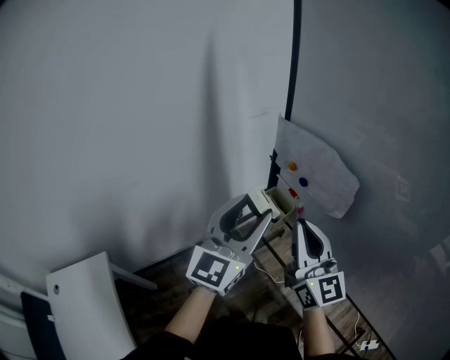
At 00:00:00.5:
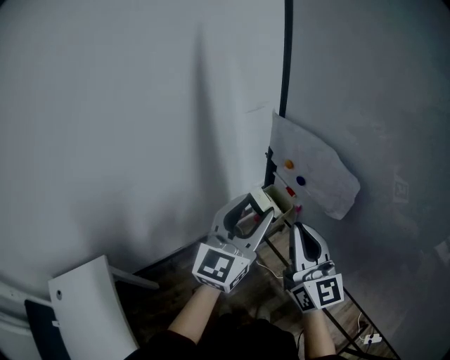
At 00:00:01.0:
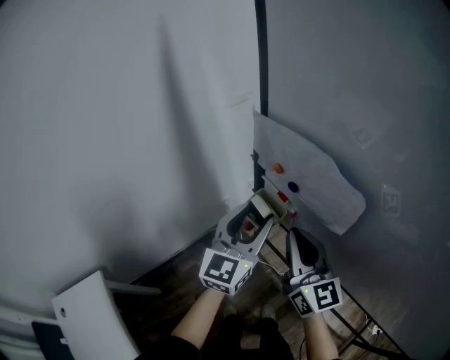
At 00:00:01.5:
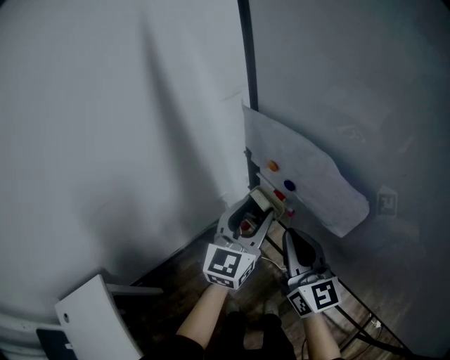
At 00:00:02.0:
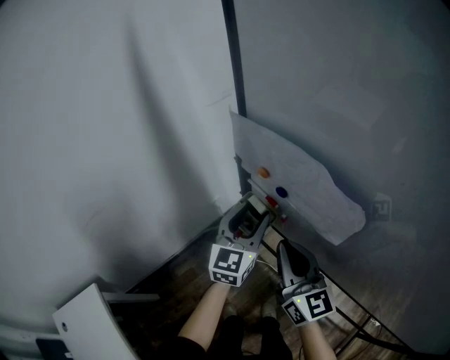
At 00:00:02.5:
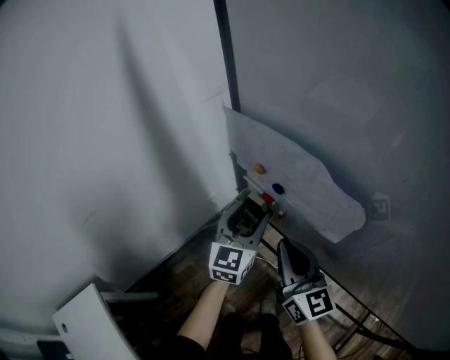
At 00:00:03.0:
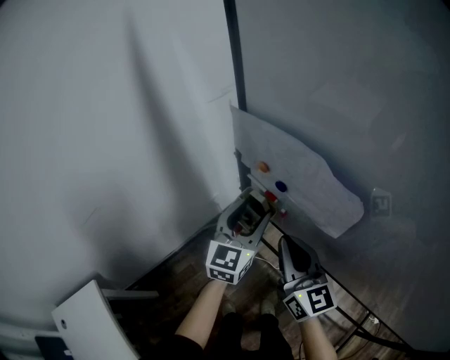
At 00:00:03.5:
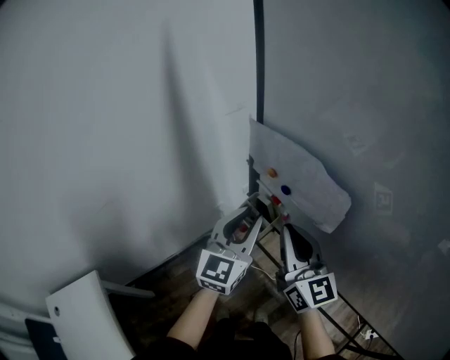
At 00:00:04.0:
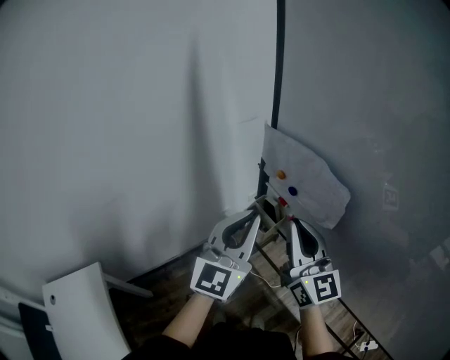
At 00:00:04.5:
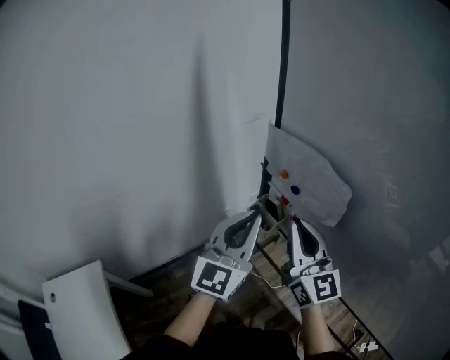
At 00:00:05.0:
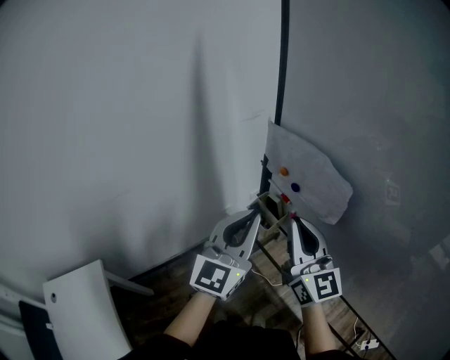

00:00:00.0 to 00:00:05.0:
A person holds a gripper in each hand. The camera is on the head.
00:00:00.0 to 00:00:02.5: The right gripper is displaced downward and forward by about 15 cm. Meanwhile the left gripper heads downward and forward, covering about 25 cm, and swivels approximately 20 degrees.
00:00:02.5 to 00:00:05.0: The right gripper heads upward, covering some 10 cm. Meanwhile the left gripper heads upward and backward, covering roughly 20 cm, and closes.

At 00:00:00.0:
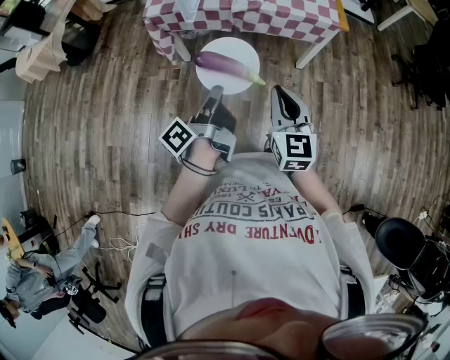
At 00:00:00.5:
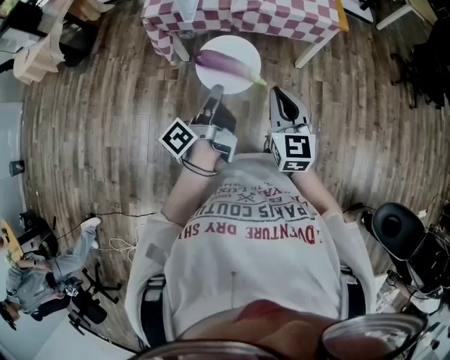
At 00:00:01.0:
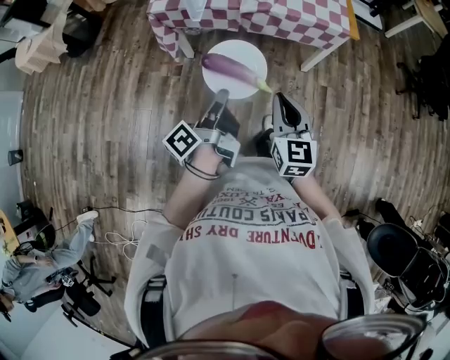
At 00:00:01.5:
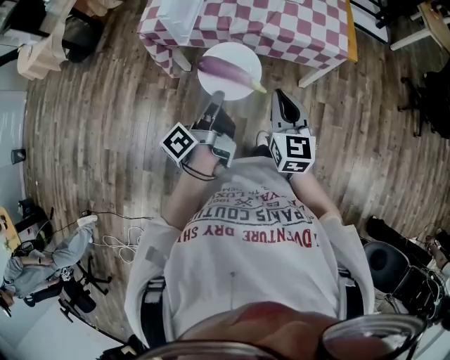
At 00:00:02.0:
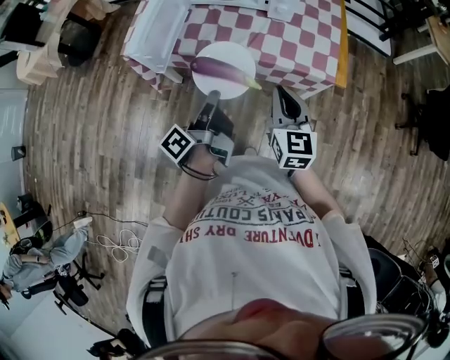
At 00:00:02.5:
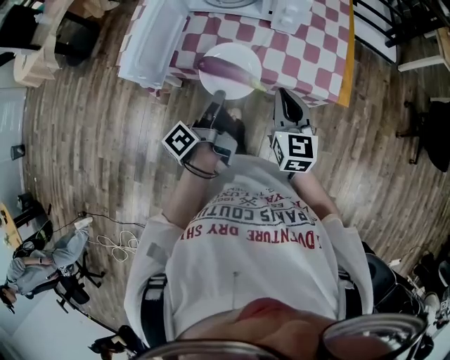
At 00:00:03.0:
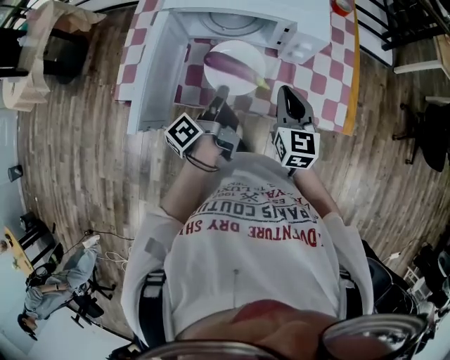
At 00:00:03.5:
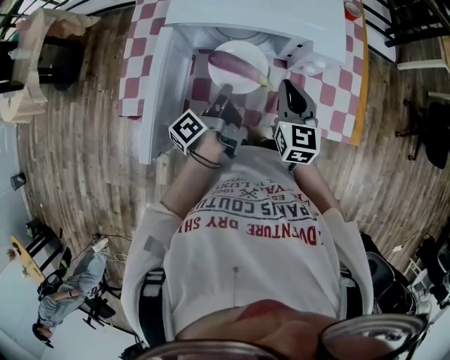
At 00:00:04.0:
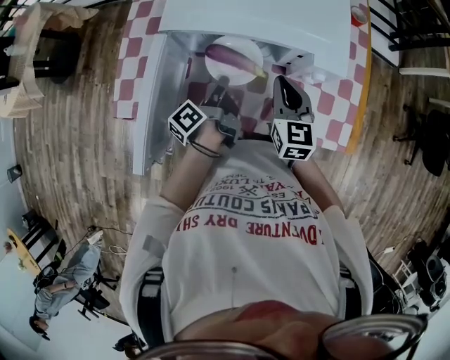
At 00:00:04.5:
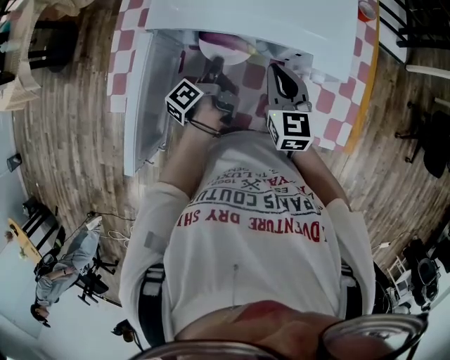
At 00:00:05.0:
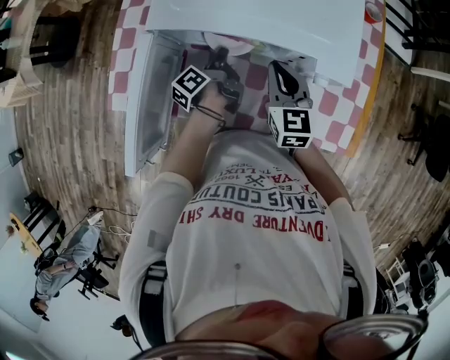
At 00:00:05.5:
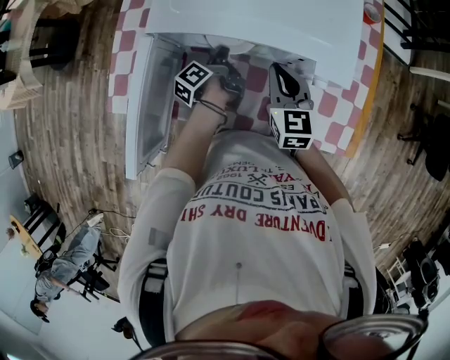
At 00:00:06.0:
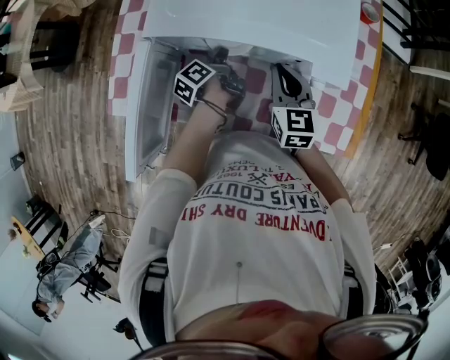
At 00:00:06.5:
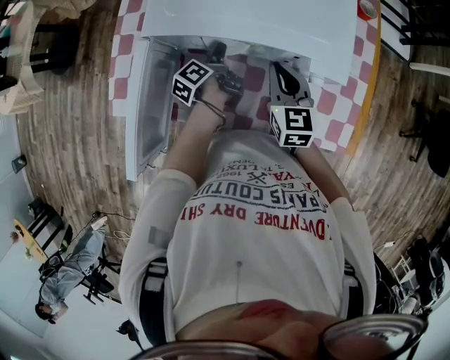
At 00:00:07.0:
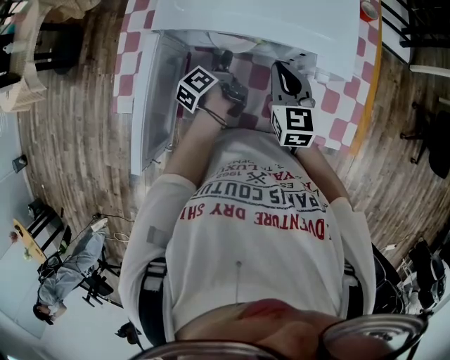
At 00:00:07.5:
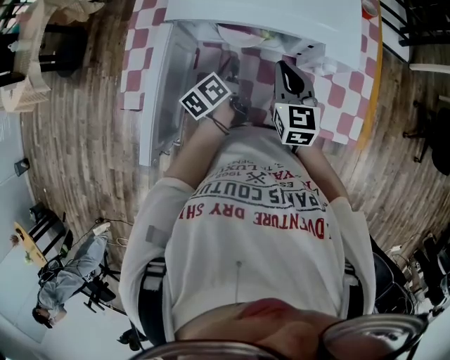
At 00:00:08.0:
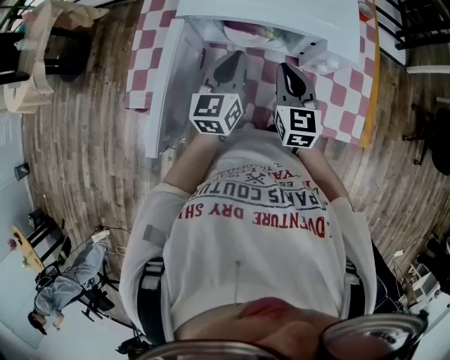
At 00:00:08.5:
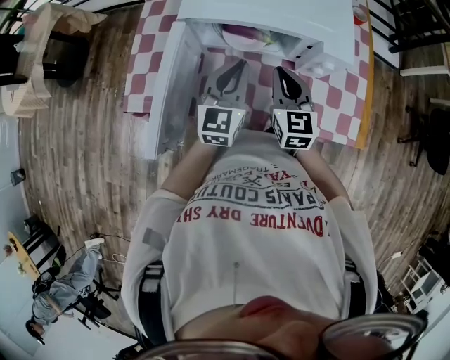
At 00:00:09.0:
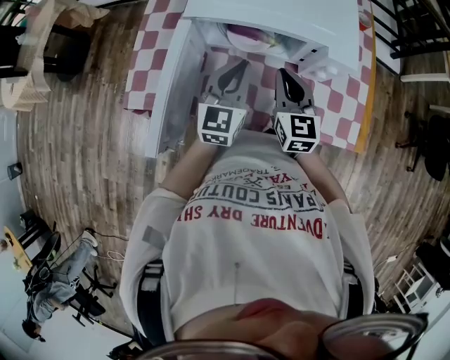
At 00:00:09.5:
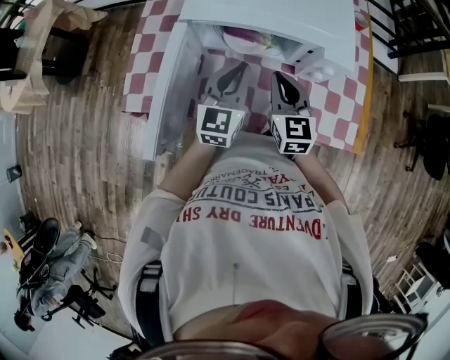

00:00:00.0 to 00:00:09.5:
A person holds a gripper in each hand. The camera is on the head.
00:00:00.0 to 00:00:02.0: The right gripper changes place by about 35 cm.
00:00:02.0 to 00:00:04.0: The right gripper moves some 35 cm.
00:00:04.0 to 00:00:05.5: The right gripper shifts by roughly 5 cm.

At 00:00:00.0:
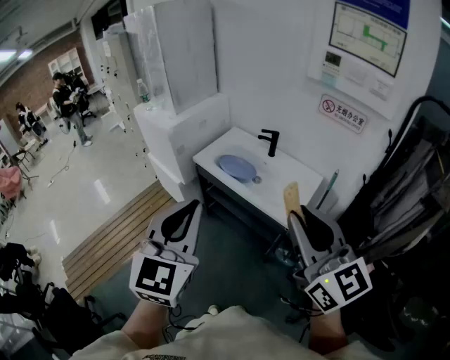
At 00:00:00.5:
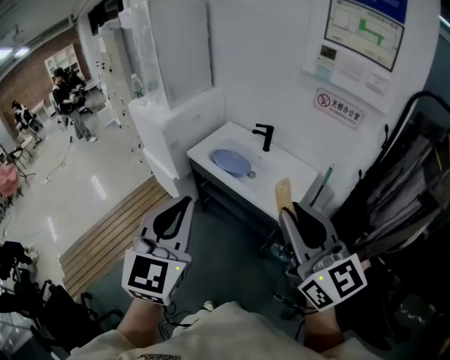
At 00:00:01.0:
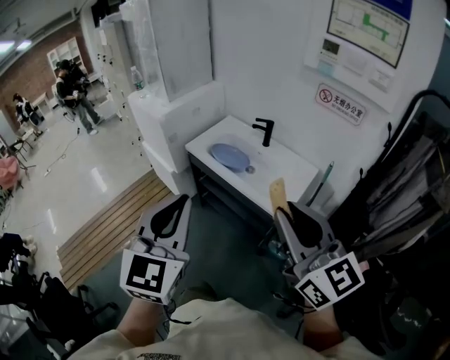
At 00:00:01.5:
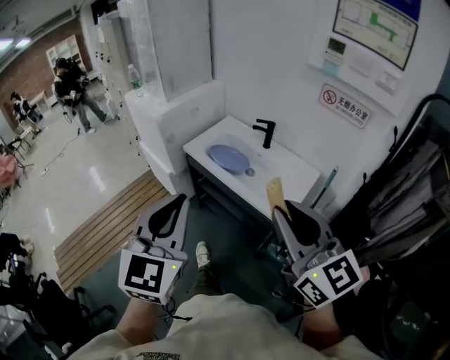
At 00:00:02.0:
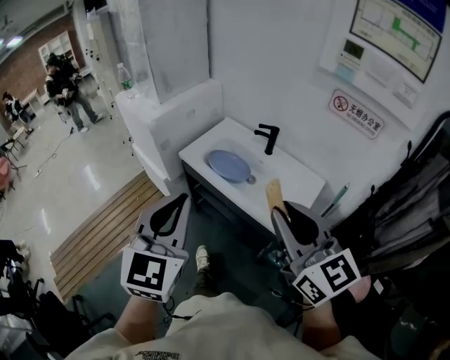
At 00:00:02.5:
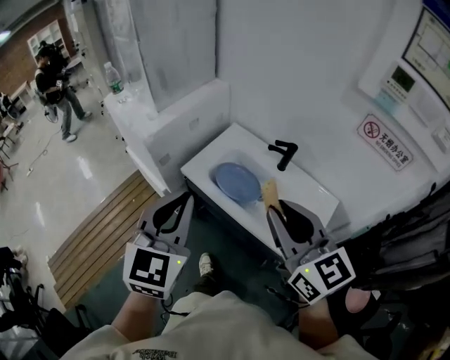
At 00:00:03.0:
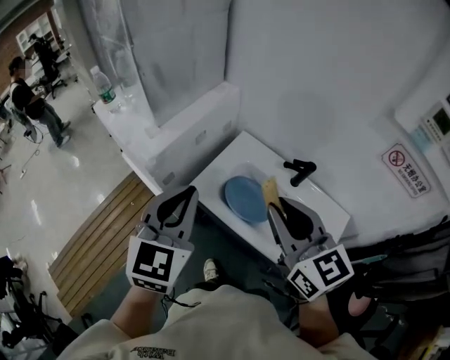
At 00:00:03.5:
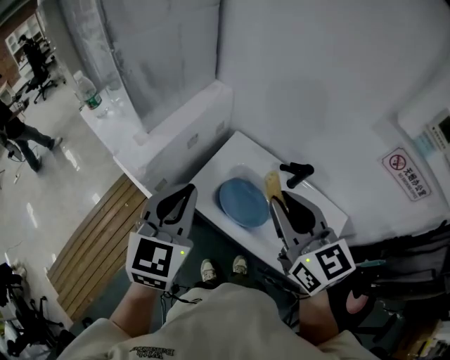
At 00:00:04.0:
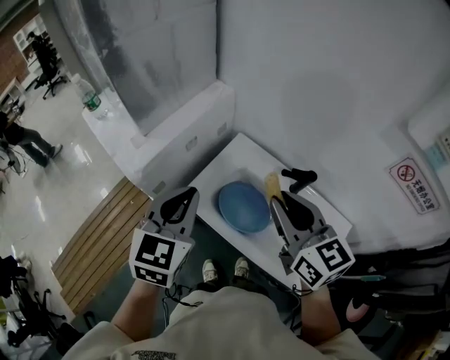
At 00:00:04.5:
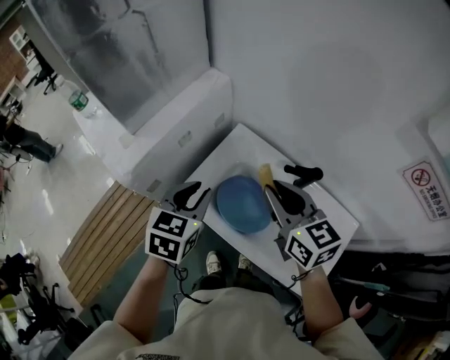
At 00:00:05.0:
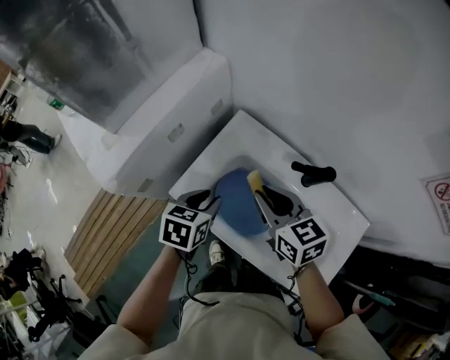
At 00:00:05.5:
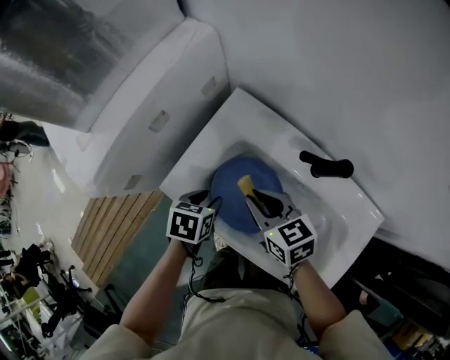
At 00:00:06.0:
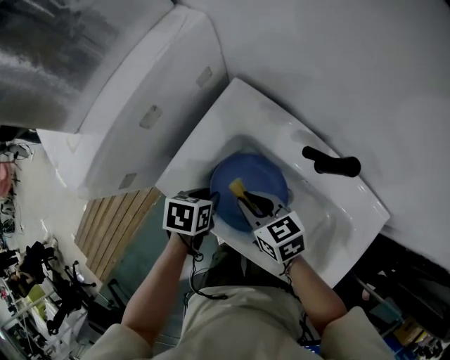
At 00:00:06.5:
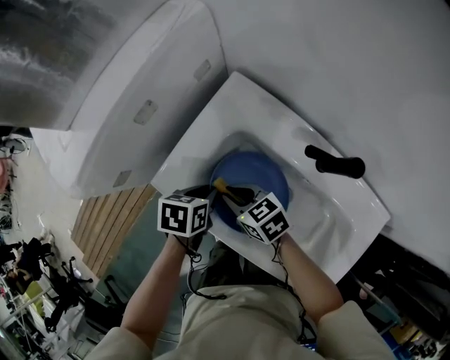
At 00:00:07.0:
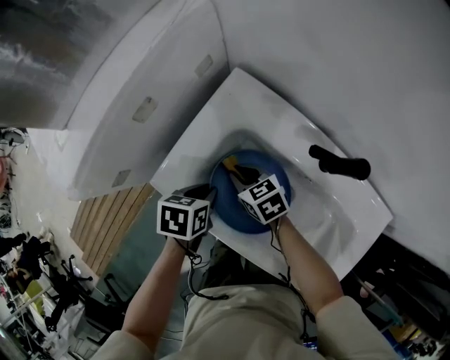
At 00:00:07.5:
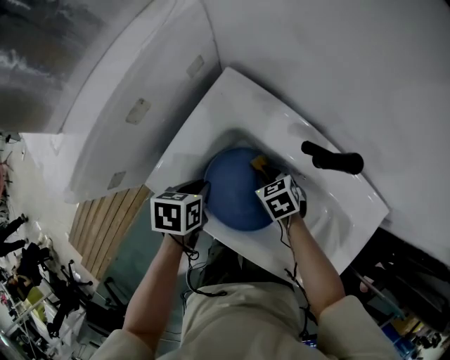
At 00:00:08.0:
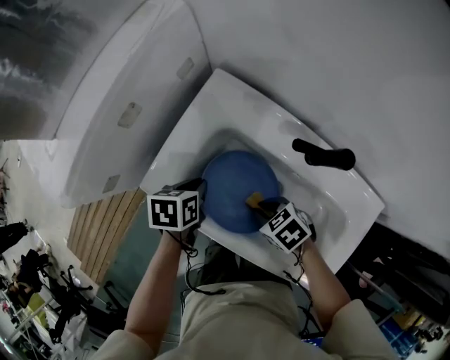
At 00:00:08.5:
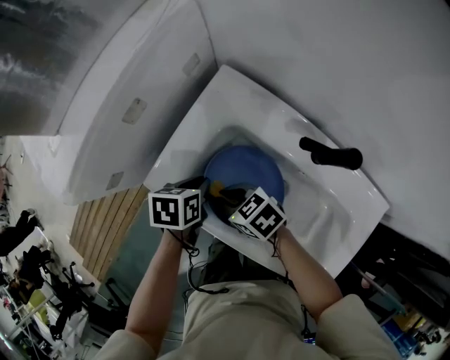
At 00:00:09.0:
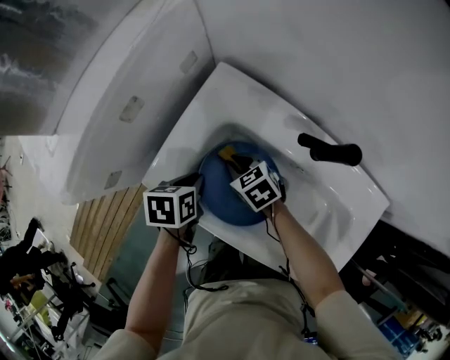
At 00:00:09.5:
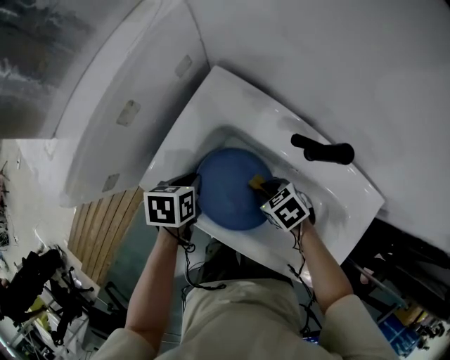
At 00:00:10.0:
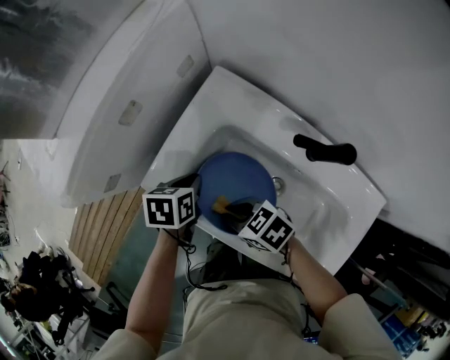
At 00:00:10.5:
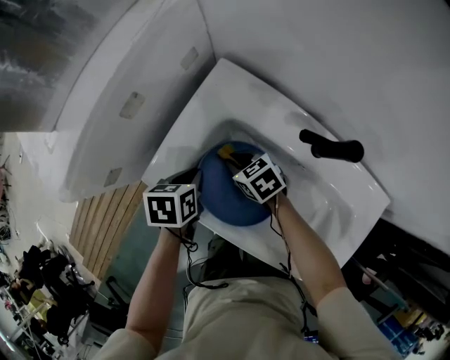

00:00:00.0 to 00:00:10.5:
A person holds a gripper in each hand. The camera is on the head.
00:00:00.0 to 00:00:02.0: The grippers both shift forward and downward by some 15 cm.
00:00:02.0 to 00:00:04.0: The pair of grippers is taken forward, roughly 40 cm.
00:00:04.0 to 00:00:06.5: The two grippers go about 40 cm downward. The right gripper rotates about 40 degrees. Meanwhile the left gripper points its fingers approximately 40 degrees further downward, and opens and closes again.
00:00:06.5 to 00:00:08.5: The right gripper travels downward and back again, about 10 cm each way.
00:00:08.5 to 00:00:10.5: The right gripper goes up and down, some 5 cm each way, reversing 2 times.

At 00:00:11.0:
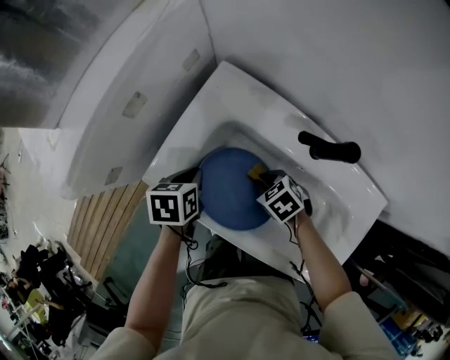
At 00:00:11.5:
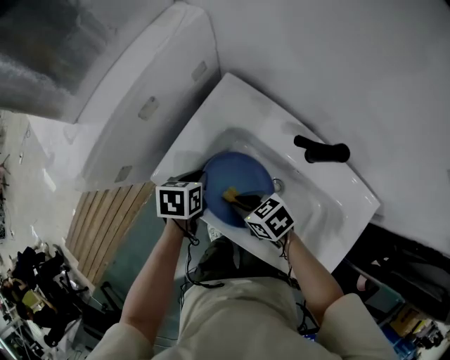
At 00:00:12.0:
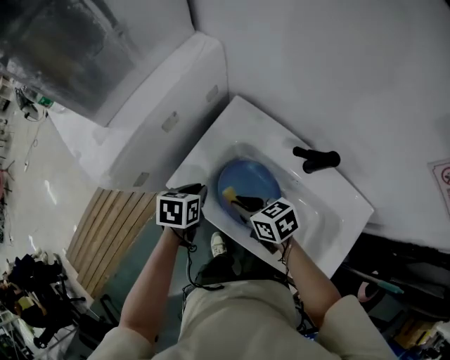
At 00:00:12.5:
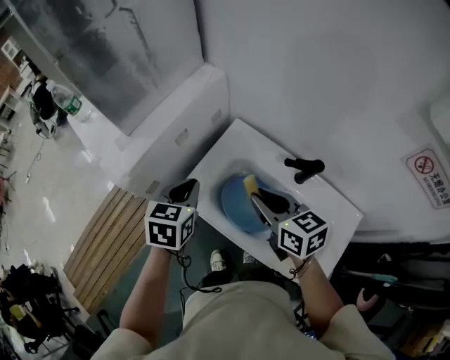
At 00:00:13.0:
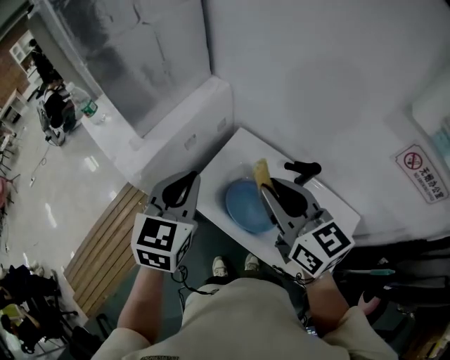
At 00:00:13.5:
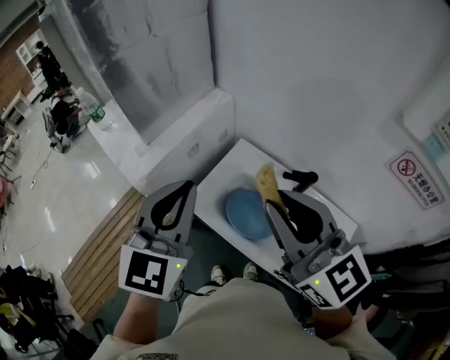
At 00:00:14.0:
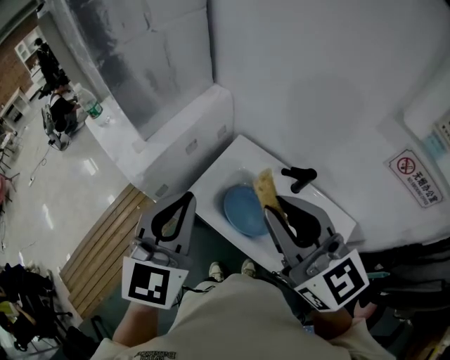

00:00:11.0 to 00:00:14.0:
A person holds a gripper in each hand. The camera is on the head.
00:00:11.0 to 00:00:12.5: Both grippers move upward, roughly 30 cm. The left gripper swivels some 30 degrees. Meanwhile the right gripper angles its fingers upward, by roughly 40 degrees.
00:00:12.5 to 00:00:14.0: The left gripper shifts approximately 25 cm upward and backward, and swivels roughly 30 degrees. The right gripper goes some 25 cm upward, and turns by roughly 30 degrees.
